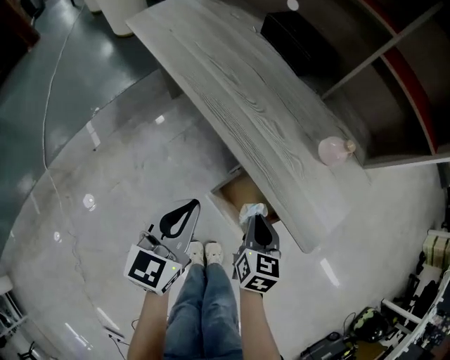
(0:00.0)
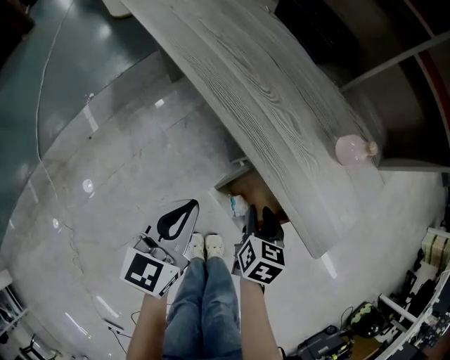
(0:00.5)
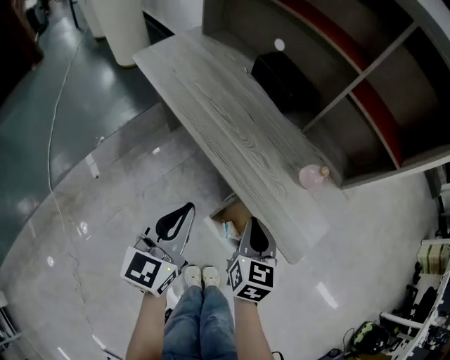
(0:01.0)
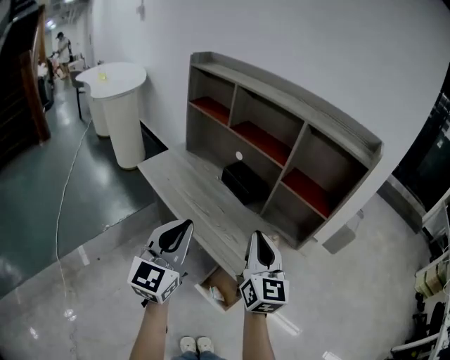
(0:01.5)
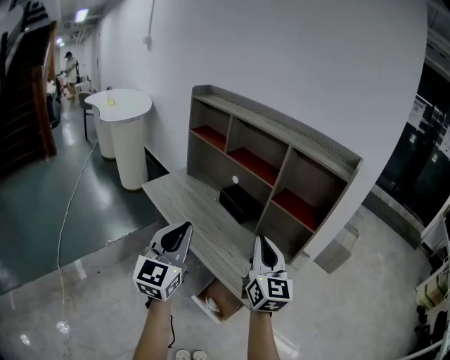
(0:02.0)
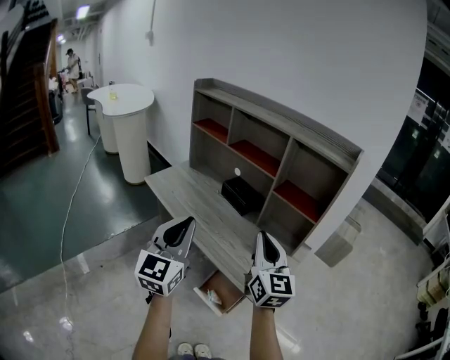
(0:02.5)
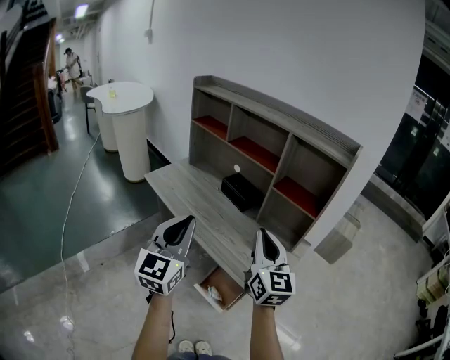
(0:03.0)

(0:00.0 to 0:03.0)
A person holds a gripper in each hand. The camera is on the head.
0:00.0 - 0:01.5: Both grippers move upward, about 40 cm. The left gripper changes its angle by about 30 degrees; the right gripper angles its fingers upward, by some 40 degrees, and opens and closes again.
0:01.5 - 0:03.0: Both grippers move backward, some 5 cm.

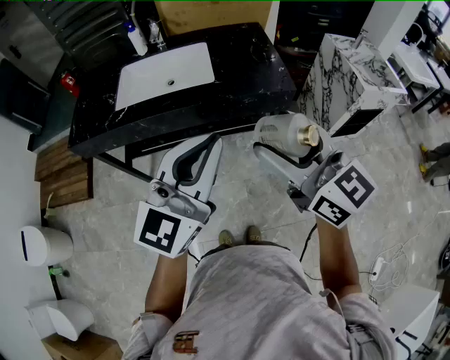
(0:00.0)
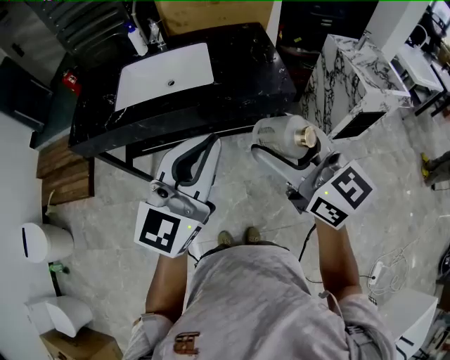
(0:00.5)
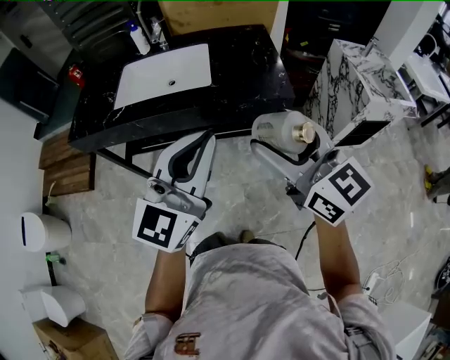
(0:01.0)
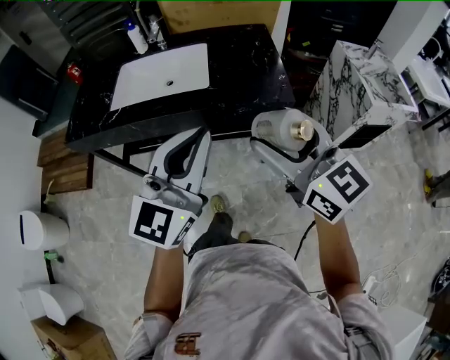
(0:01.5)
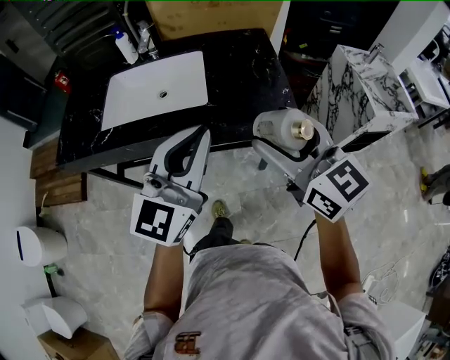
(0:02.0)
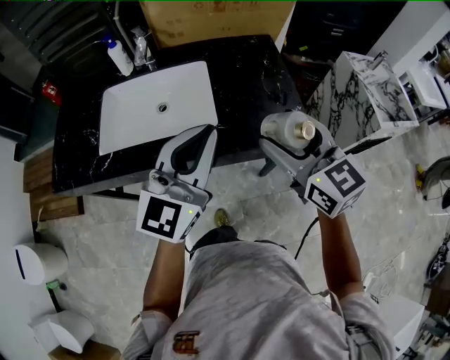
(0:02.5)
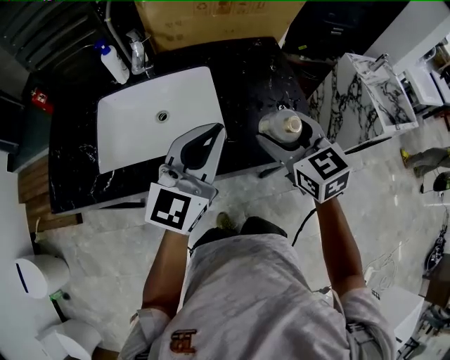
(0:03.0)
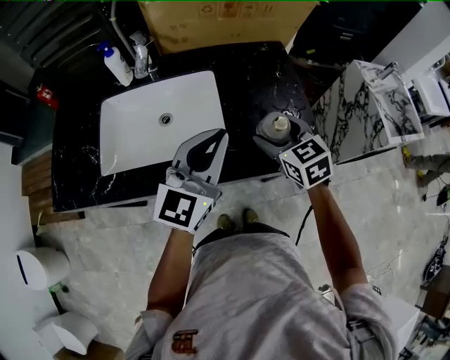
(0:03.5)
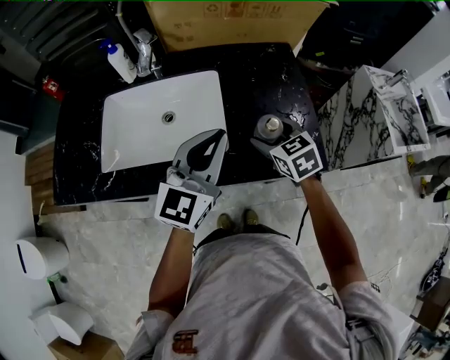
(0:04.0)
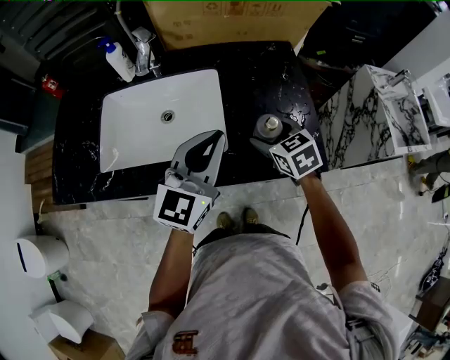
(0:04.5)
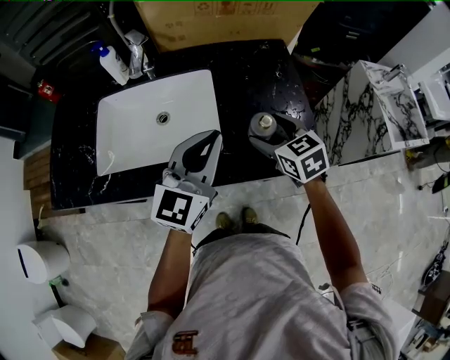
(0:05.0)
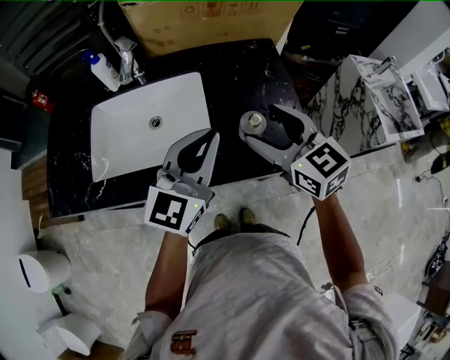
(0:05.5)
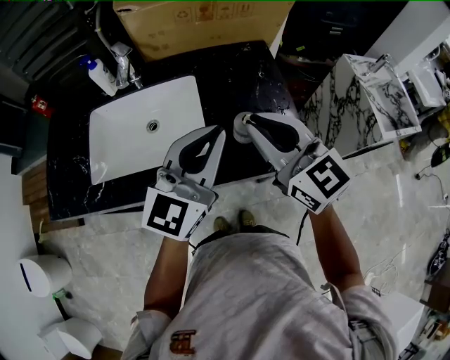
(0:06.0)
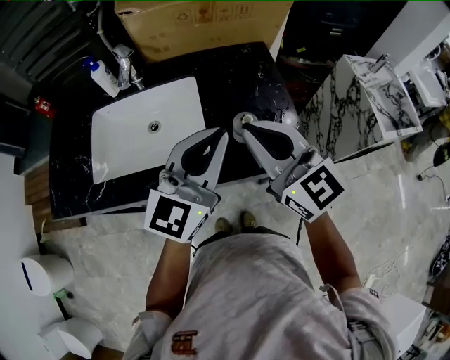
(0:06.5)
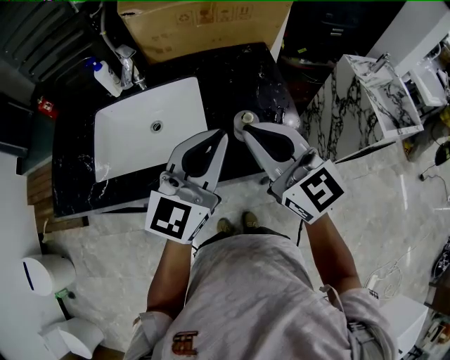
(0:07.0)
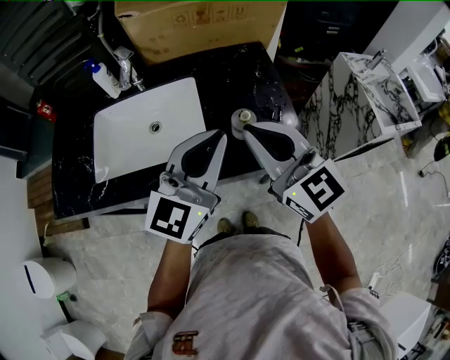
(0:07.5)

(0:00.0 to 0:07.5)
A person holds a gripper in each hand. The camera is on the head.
0:00.0 - 0:02.0: Both grippers move forward, about 15 cm.
0:02.0 - 0:04.0: Both grippers move forward and downward, approximately 30 cm. The right gripper angles its fingers downward, by approximately 40 degrees.
0:04.0 - 0:05.5: The right gripper shifts roughly 15 cm upward, and swivels roughly 20 degrees.
0:05.5 - 0:07.5: The right gripper travels upward and backward by approximately 10 cm, and closes up; the left gripper shifts by some 5 cm.

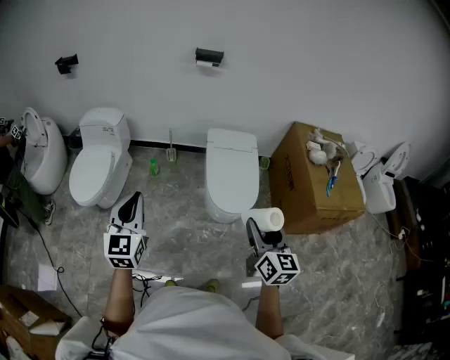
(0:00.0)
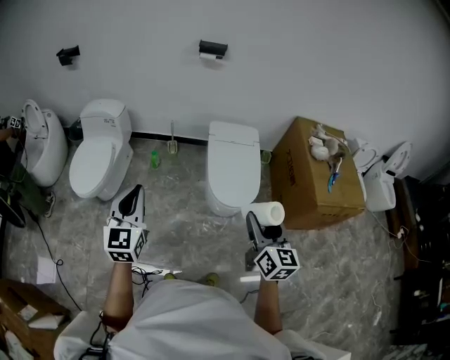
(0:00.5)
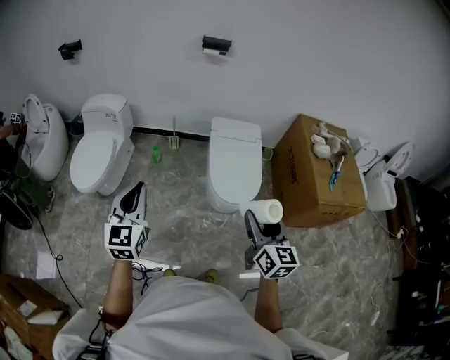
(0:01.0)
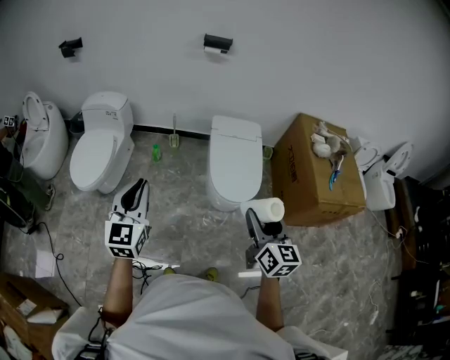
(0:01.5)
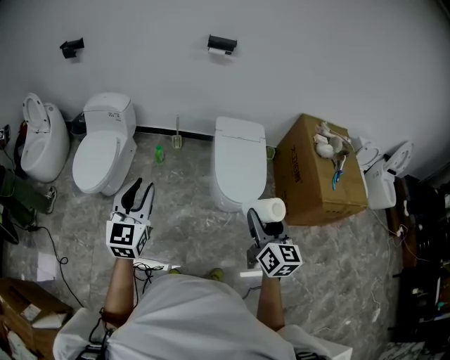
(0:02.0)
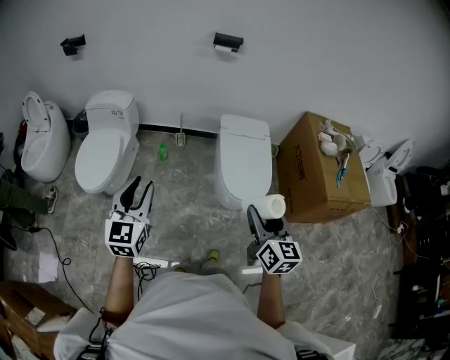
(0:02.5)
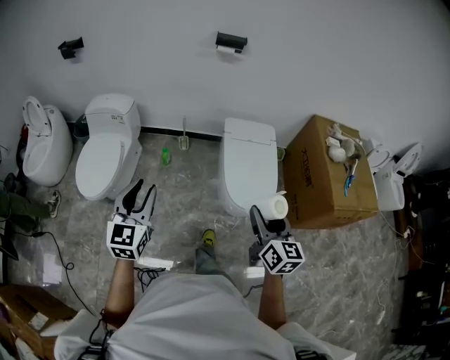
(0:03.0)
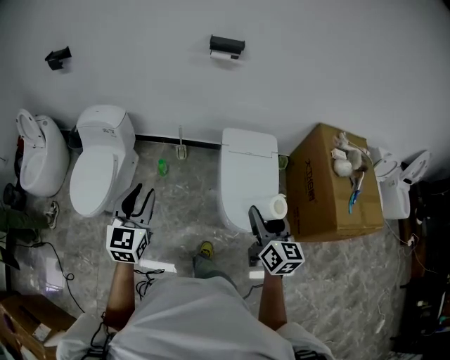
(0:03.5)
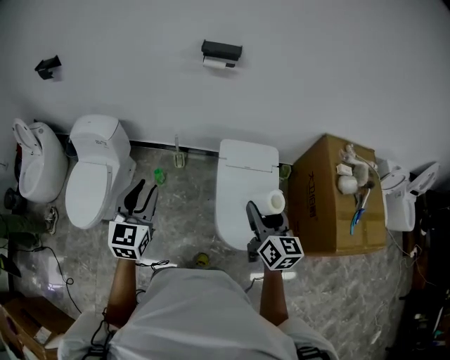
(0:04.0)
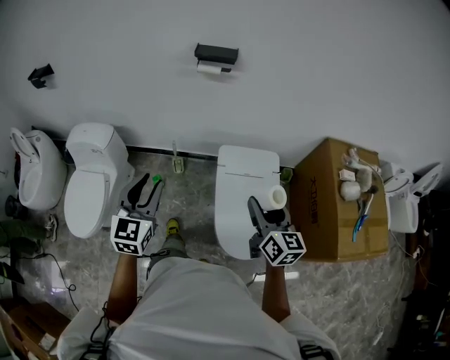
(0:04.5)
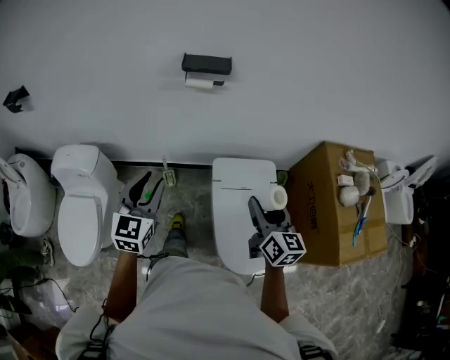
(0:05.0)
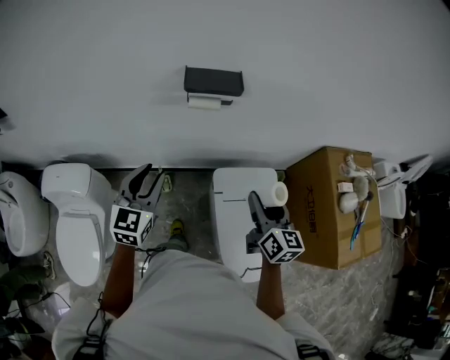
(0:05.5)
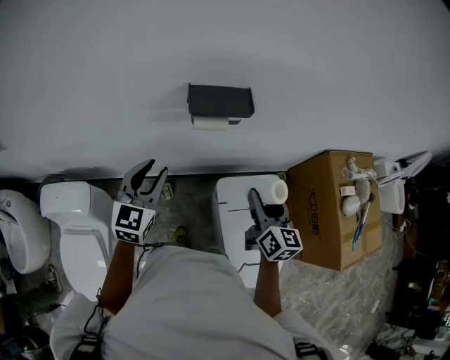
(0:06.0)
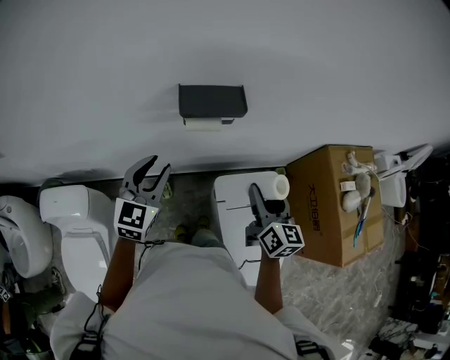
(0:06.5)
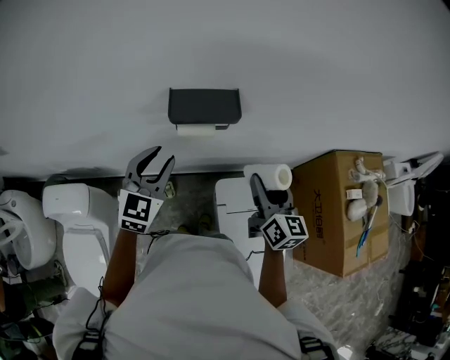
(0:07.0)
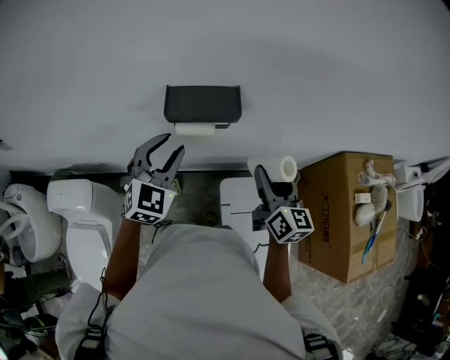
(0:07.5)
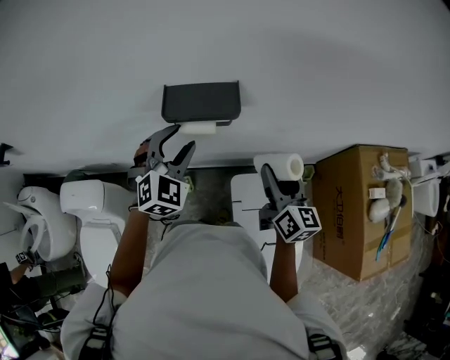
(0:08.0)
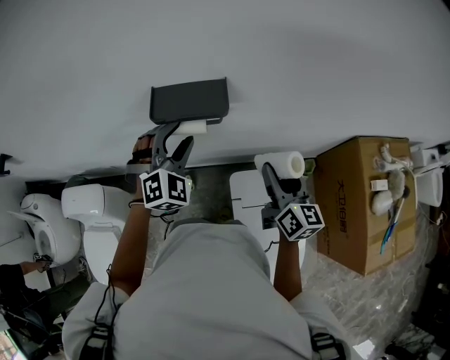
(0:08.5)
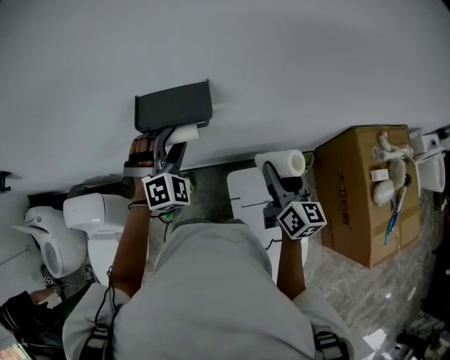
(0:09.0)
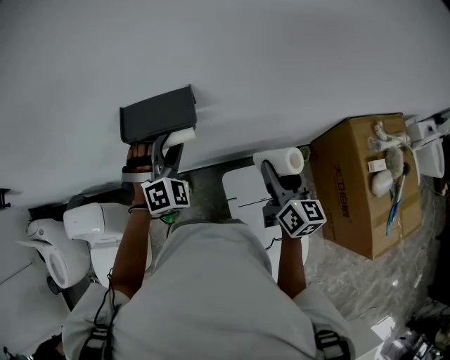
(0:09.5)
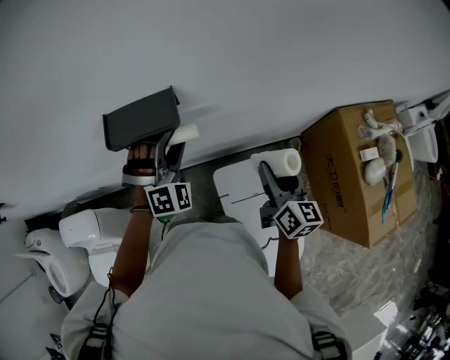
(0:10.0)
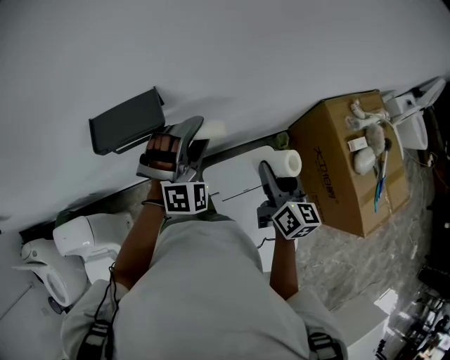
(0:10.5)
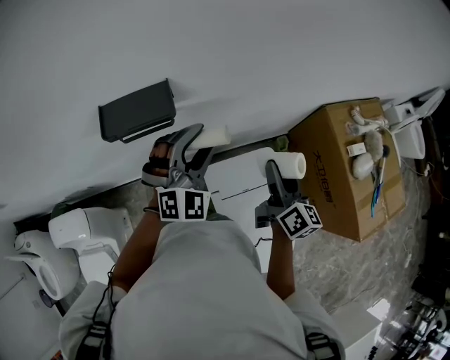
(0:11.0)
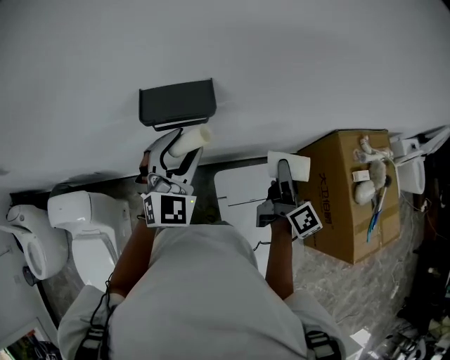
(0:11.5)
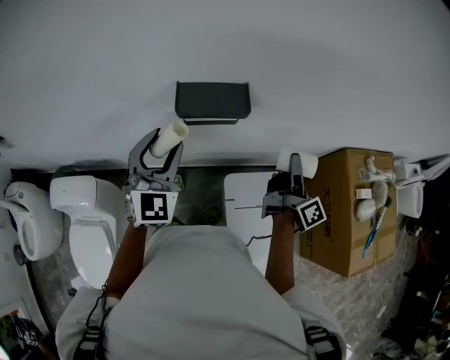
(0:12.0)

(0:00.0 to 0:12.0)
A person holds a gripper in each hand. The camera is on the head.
0:00.0 - 0:02.0: The right gripper travels to the left by approximately 5 cm, while the left gripper opens.
0:02.0 - 0:04.0: Both grippers travel together forward, roughly 40 cm.
0:04.0 - 0:06.0: The two grippers travel together, forward, roughly 50 cm.
0:06.0 - 0:08.0: Both grippers move forward and to the right, some 15 cm. The left gripper swivels about 40 degrees.
0:08.0 - 0:10.0: Both grippers travel together to the right, some 10 cm. The left gripper turns by about 30 degrees.
0:10.0 - 0:12.0: The right gripper travels to the left and upward by approximately 10 cm, and rotates around the line of its fingers by approximately 40 degrees, clockwise from behind; the left gripper is displaced to the left, backward and upward by some 20 cm, and rolls counterclockwise, seen from behind, by about 50 degrees.

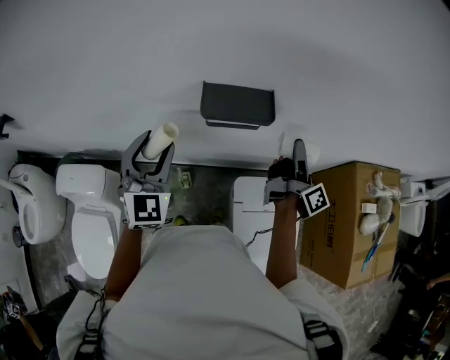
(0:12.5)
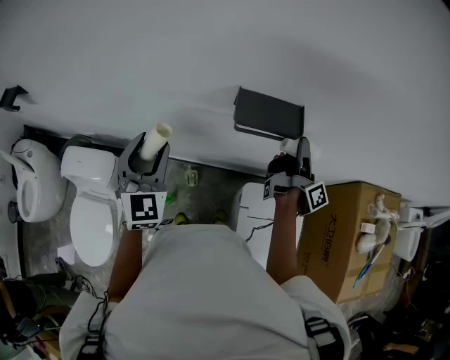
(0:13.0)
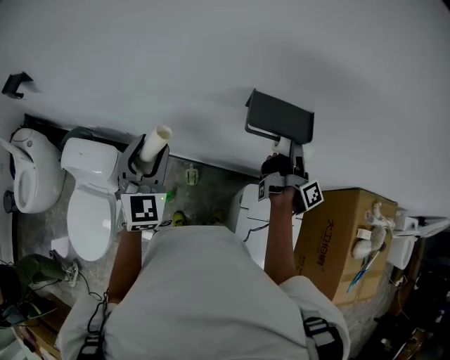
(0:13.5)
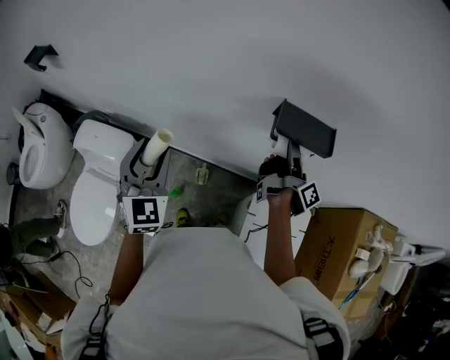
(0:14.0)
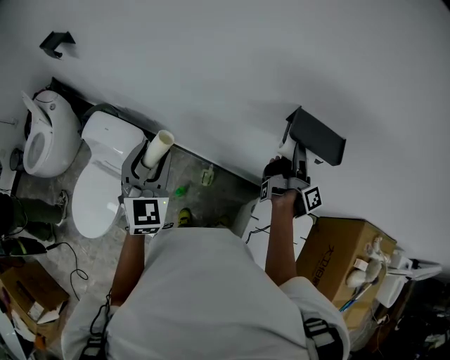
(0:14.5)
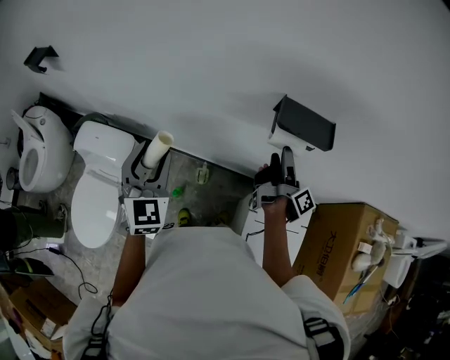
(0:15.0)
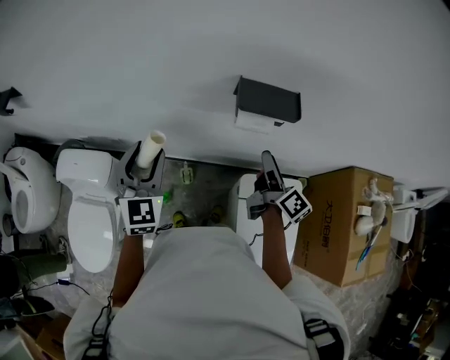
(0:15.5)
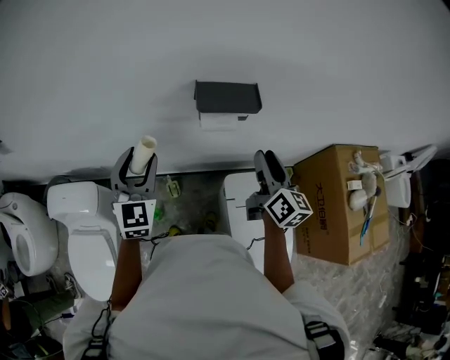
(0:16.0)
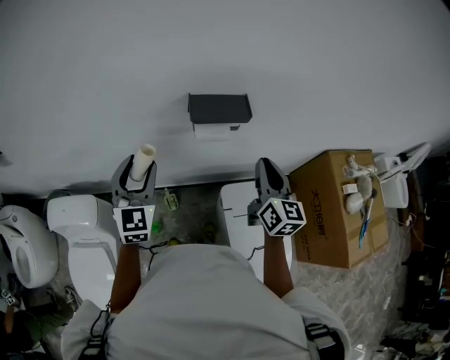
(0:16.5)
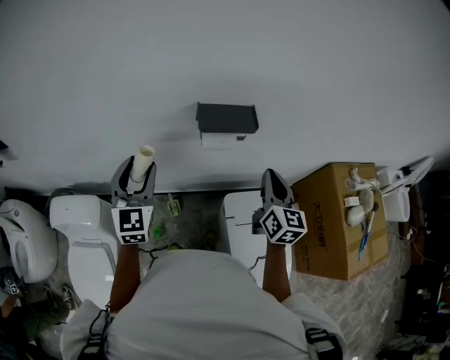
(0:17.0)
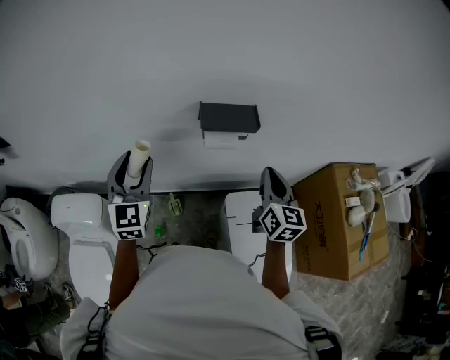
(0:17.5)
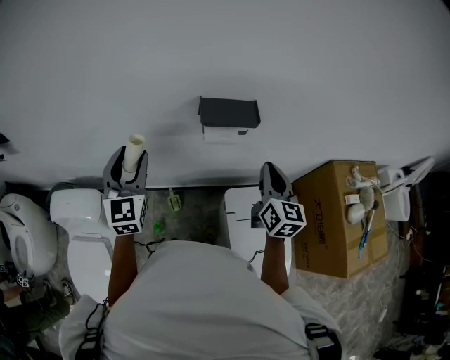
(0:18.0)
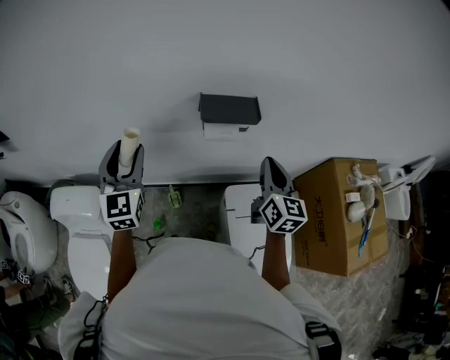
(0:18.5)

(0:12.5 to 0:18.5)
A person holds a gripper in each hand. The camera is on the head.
0:12.5 - 0:14.5: The right gripper is displaced to the left by roughly 20 cm, and changes its angle by roughly 20 degrees. Meanwhile the left gripper heads to the left and backward, covering roughly 25 cm, and changes its angle by about 30 degrees.
0:14.5 - 0:16.5: The right gripper shifts approximately 20 cm backward, to the right and upward, twists some 80 degrees counterclockwise, seen from behind, and closes its fingers. Meanwhile the left gripper goes roughly 15 cm to the right and forward, and turns by some 30 degrees.
0:16.5 - 0:18.5: The left gripper moves to the left, about 5 cm.
